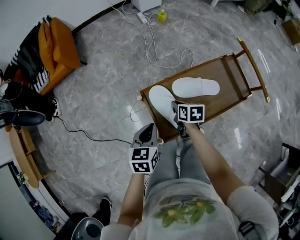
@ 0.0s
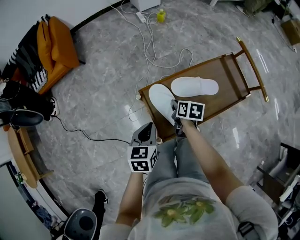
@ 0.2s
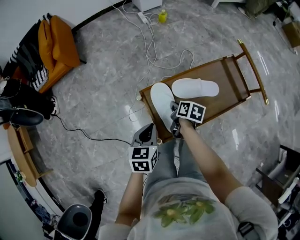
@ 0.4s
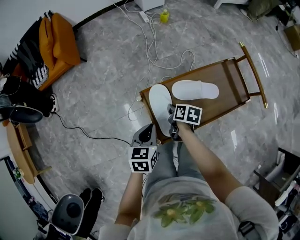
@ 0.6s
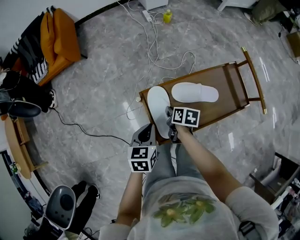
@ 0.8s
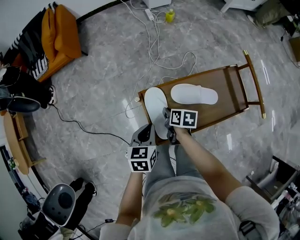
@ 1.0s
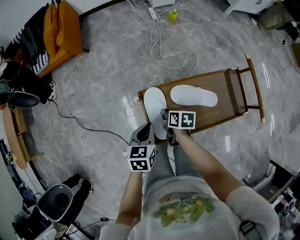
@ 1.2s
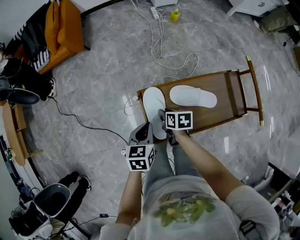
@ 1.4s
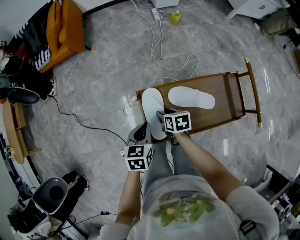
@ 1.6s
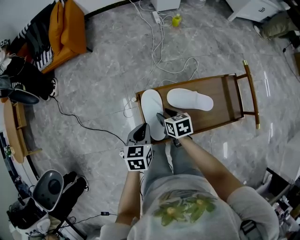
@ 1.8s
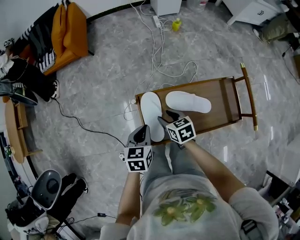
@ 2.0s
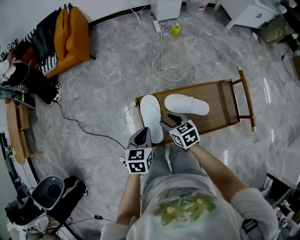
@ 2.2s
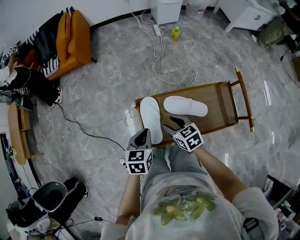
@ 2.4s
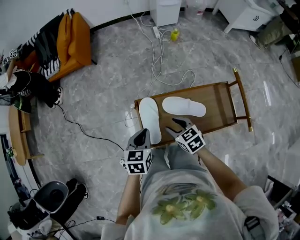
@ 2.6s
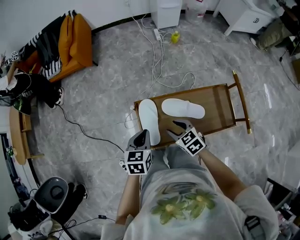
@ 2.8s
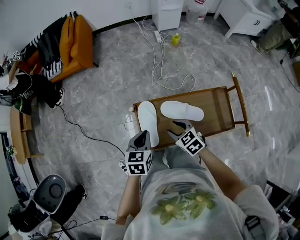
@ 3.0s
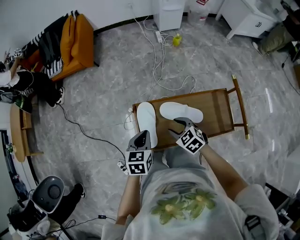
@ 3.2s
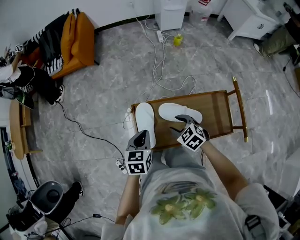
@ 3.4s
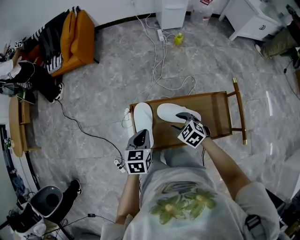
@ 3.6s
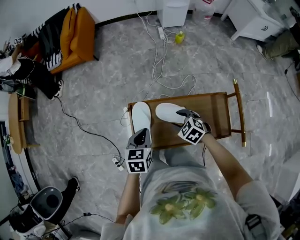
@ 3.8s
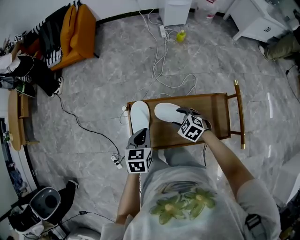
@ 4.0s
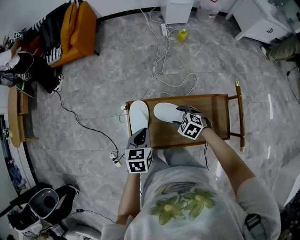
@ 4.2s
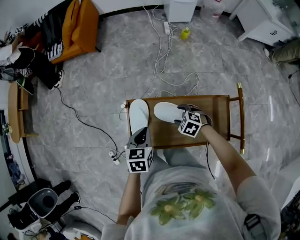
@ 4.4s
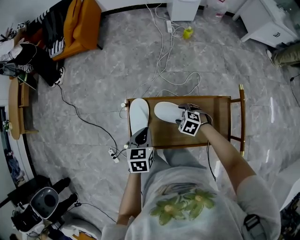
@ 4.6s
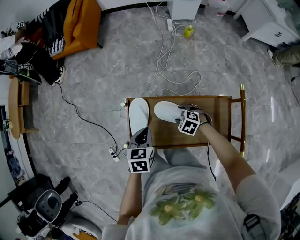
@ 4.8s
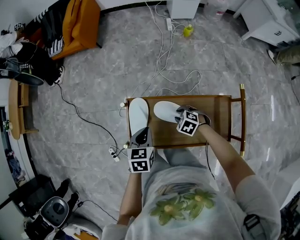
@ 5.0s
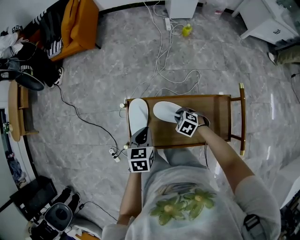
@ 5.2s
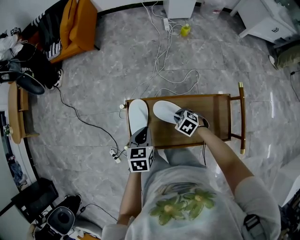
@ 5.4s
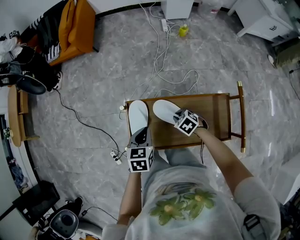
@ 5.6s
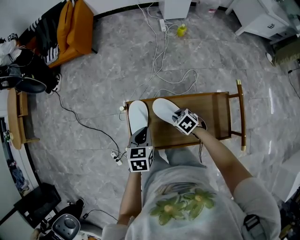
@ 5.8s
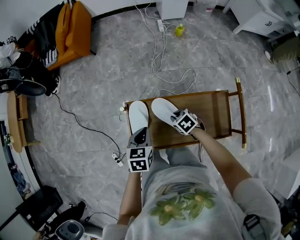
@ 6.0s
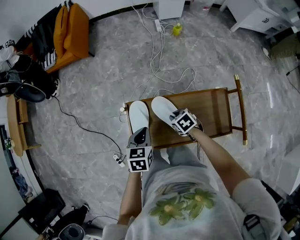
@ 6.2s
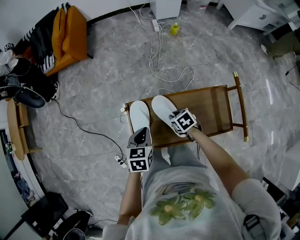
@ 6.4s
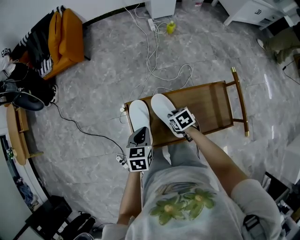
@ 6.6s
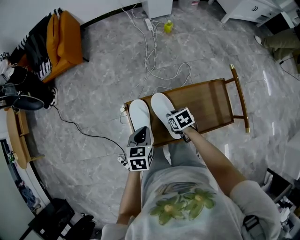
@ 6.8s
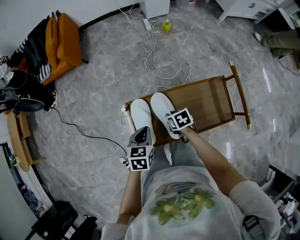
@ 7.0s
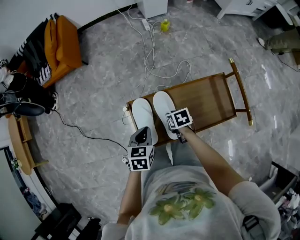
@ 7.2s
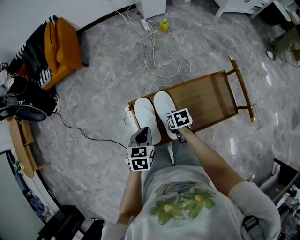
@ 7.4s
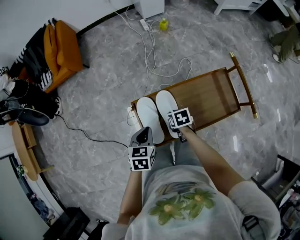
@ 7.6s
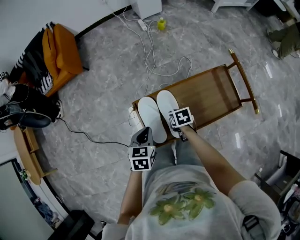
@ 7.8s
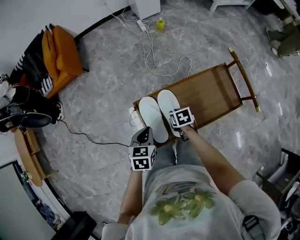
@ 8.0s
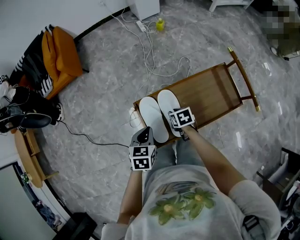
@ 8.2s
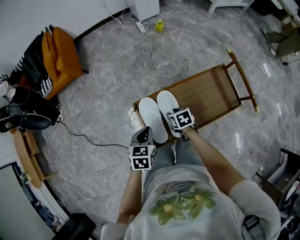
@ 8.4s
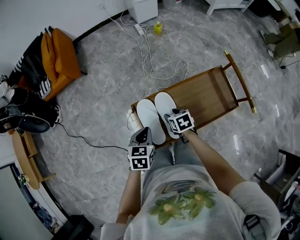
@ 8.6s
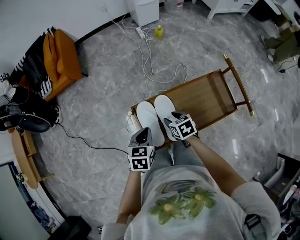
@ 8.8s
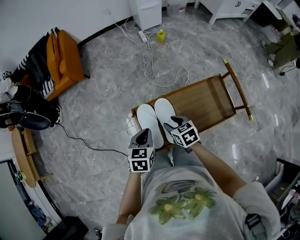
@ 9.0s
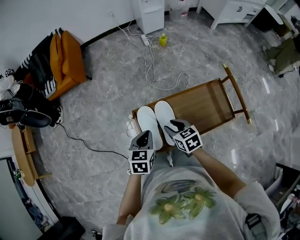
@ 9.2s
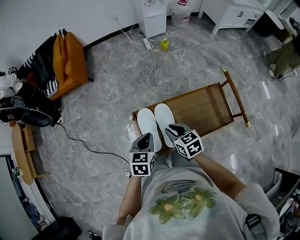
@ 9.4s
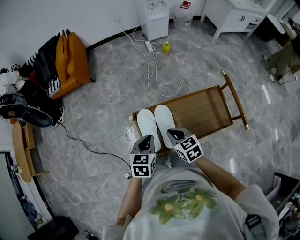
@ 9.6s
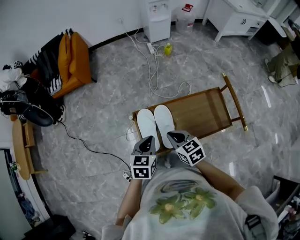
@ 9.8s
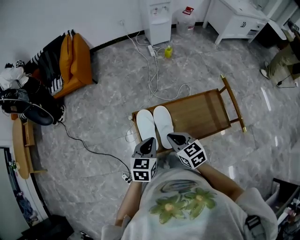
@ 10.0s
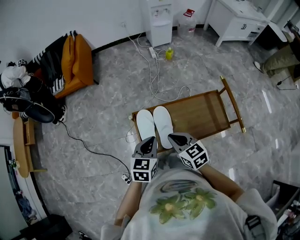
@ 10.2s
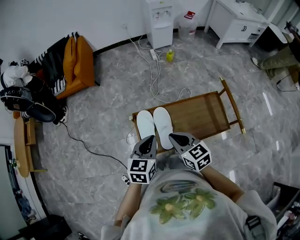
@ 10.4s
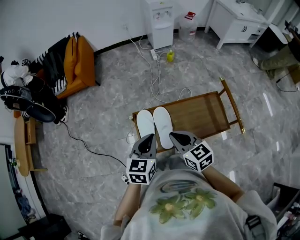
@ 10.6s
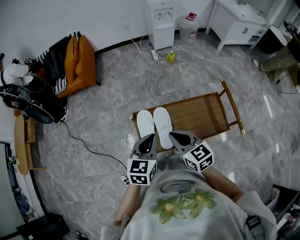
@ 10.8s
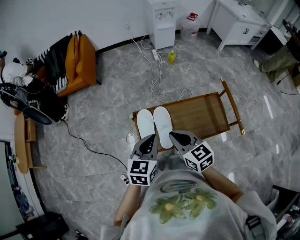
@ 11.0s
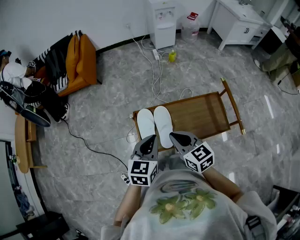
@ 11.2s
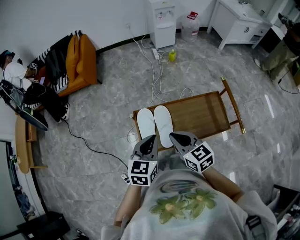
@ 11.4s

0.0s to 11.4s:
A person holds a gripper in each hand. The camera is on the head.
0.0s to 1.4s: There are only small adjustments of the grippers.
1.4s to 2.8s: The right gripper travels upward, to the right and backward by approximately 15 cm, and rolls counterclockwise, seen from behind, by roughly 50 degrees; the left gripper is displaced upward by about 5 cm.
2.8s to 4.2s: The left gripper moves to the right, approximately 5 cm, while the right gripper travels to the right and downward by approximately 10 cm, and turns by some 30 degrees.
4.2s to 5.6s: The right gripper closes.
5.6s to 7.2s: The right gripper shifts some 5 cm to the left, and rolls clockwise, seen from behind, by approximately 50 degrees.
7.2s to 8.6s: The right gripper opens its fingers.
8.6s to 10.0s: The left gripper shifts approximately 10 cm upward. The right gripper goes about 15 cm upward, rotates some 30 degrees, and closes up.
10.0s to 11.4s: The two grippers go roughly 5 cm upward.

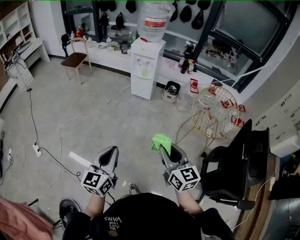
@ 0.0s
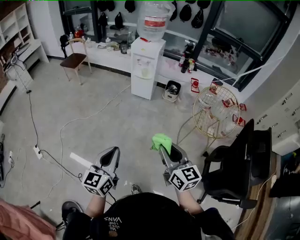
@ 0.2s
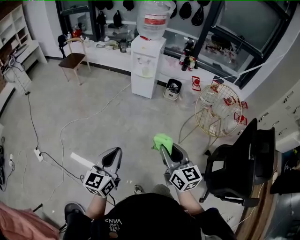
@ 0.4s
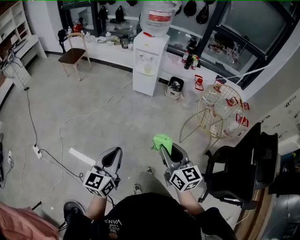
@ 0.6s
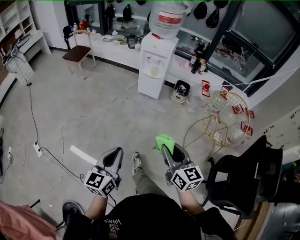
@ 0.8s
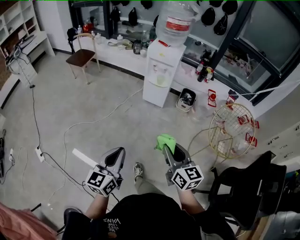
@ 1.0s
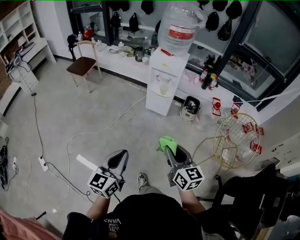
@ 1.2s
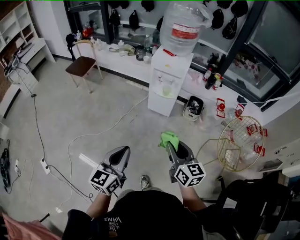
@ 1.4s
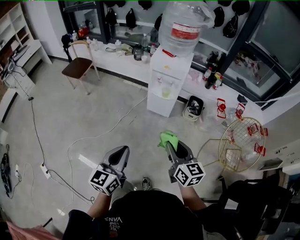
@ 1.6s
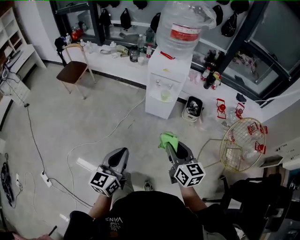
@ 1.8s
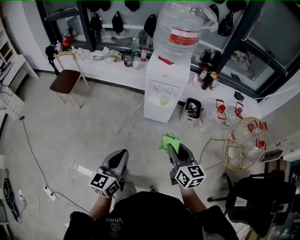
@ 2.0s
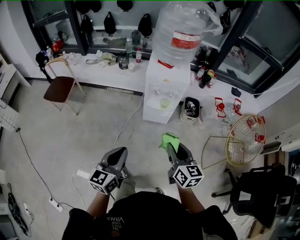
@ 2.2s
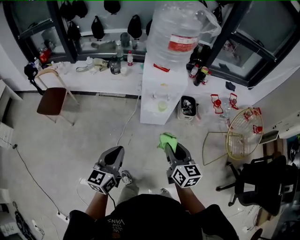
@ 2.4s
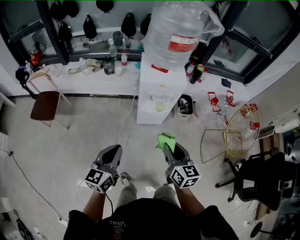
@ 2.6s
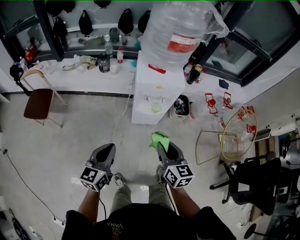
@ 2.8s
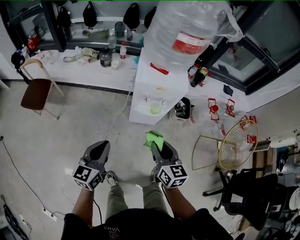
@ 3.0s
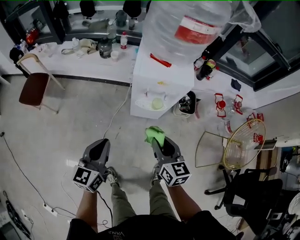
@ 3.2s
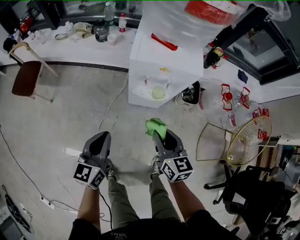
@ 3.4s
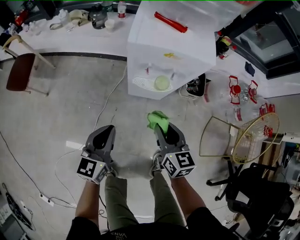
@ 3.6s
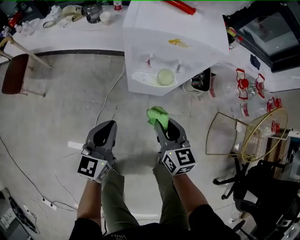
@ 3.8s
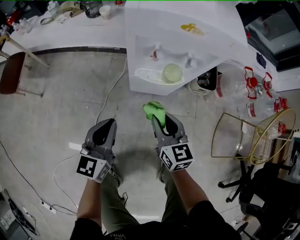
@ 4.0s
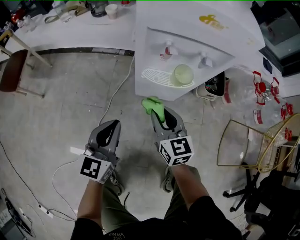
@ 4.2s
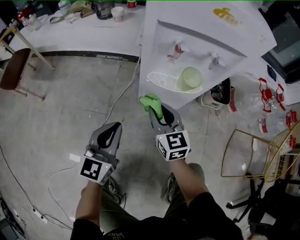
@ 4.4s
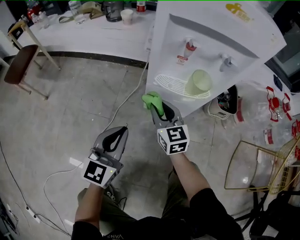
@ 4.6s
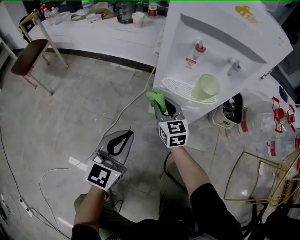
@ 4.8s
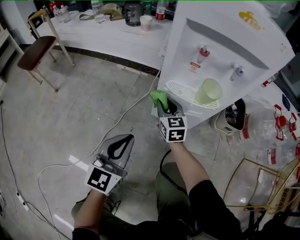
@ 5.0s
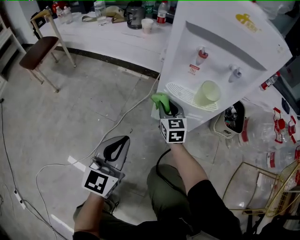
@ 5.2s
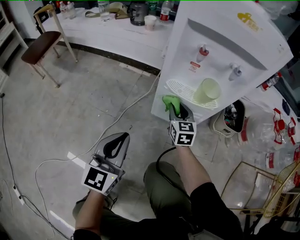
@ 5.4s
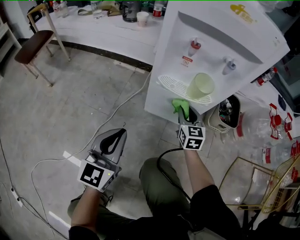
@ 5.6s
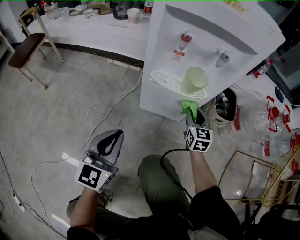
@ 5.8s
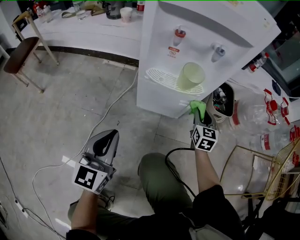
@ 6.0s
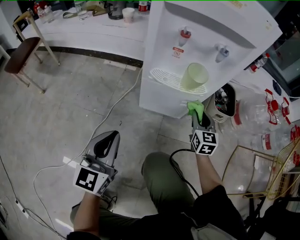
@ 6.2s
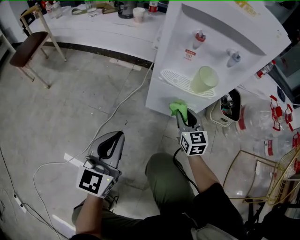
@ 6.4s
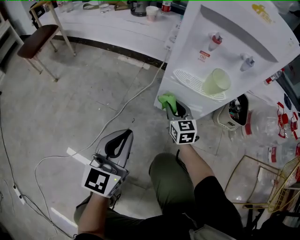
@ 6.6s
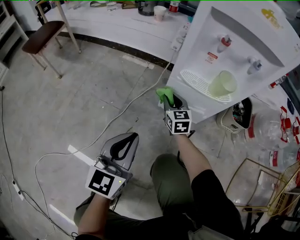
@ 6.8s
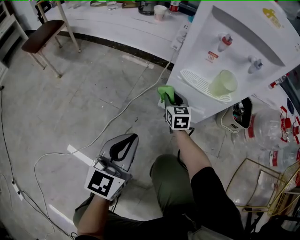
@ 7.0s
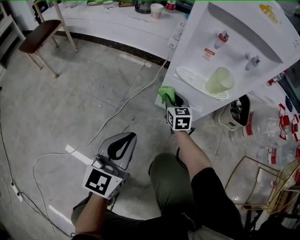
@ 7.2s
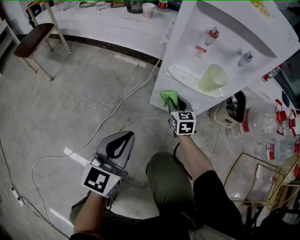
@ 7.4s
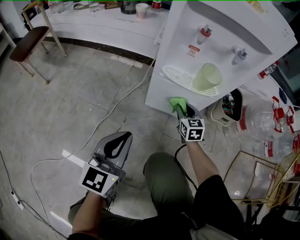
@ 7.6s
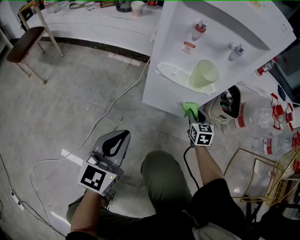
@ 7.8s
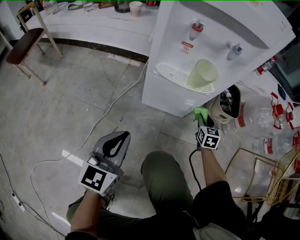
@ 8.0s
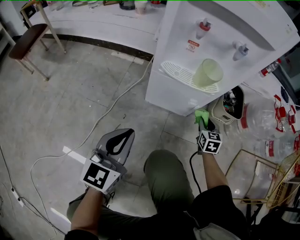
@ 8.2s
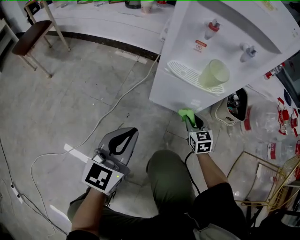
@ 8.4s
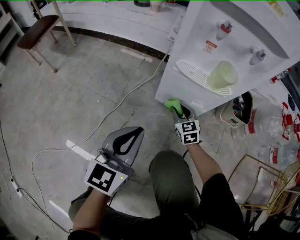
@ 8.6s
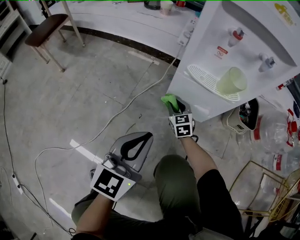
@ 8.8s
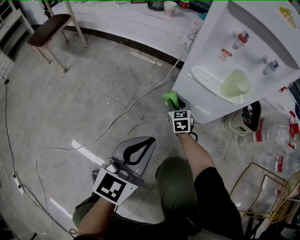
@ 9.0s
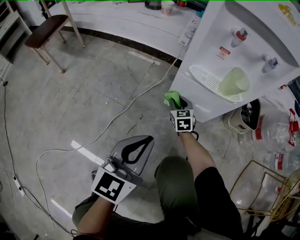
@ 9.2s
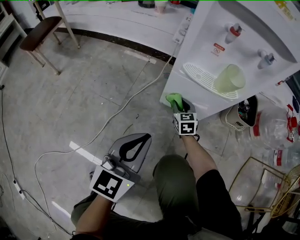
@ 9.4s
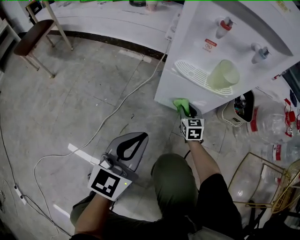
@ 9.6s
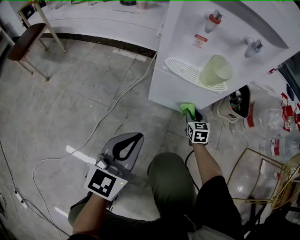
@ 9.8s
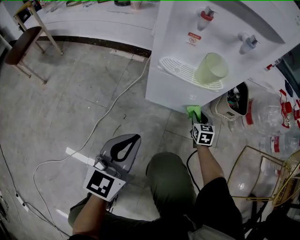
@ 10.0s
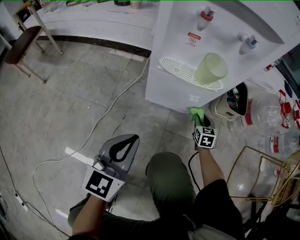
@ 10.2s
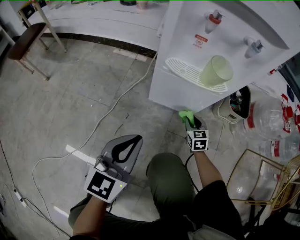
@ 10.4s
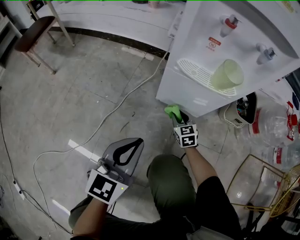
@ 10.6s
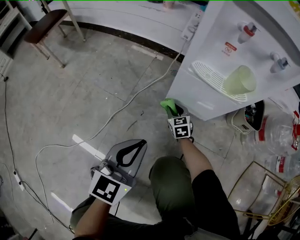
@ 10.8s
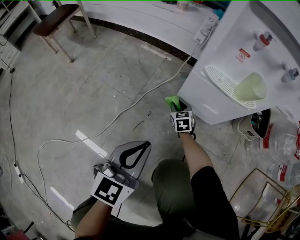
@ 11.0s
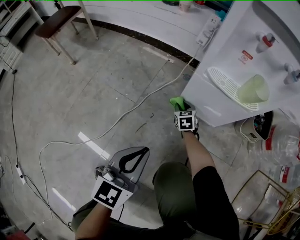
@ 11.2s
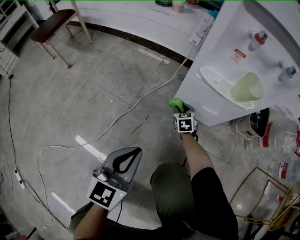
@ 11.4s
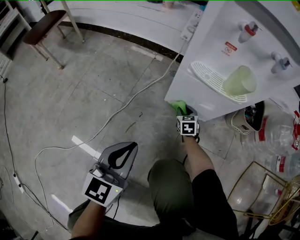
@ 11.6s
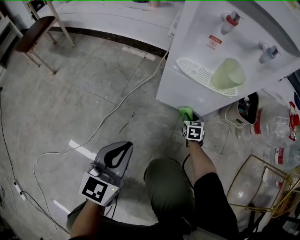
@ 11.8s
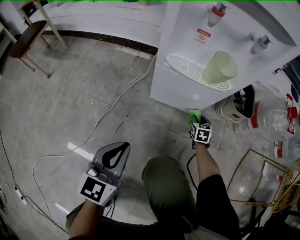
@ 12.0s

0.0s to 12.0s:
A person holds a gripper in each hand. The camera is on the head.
0.0s to 1.6s: Both grippers are carried forward, approximately 40 cm.
1.6s to 3.0s: Both grippers travel together forward and to the left, roughly 35 cm. The right gripper changes its angle by approximately 20 degrees.
3.0s to 4.4s: The left gripper moves downward, approximately 35 cm. Meanwhile the right gripper is displaced downward and forward by approximately 40 cm.
4.4s to 6.0s: The right gripper shifts roughly 25 cm to the right and downward, and turns by roughly 20 degrees; the left gripper shifts by approximately 5 cm.
6.0s to 7.6s: The right gripper heads to the left and downward, covering about 15 cm.
7.6s to 9.0s: The right gripper shifts roughly 15 cm to the left and downward.
9.0s to 10.4s: The right gripper heads to the right, covering approximately 20 cm.
10.4s to 12.0s: The right gripper moves downward, about 5 cm, and travels to the left and back again, about 20 cm each way.
